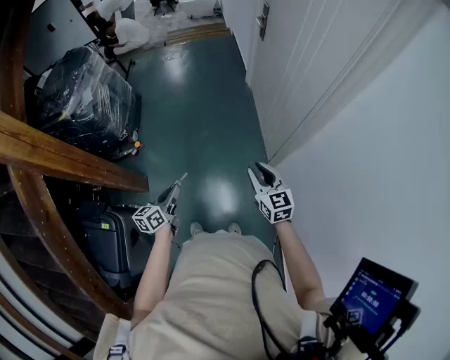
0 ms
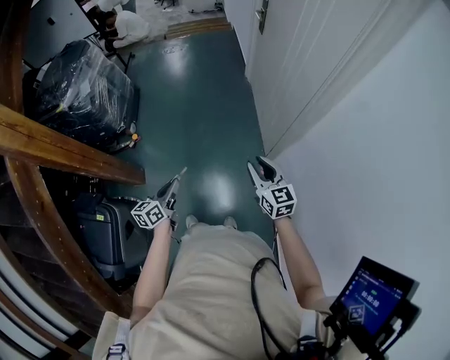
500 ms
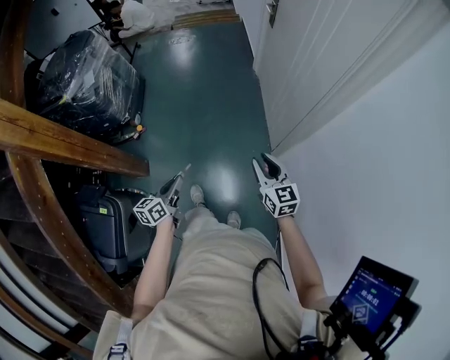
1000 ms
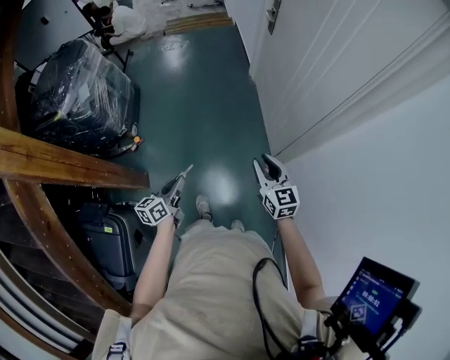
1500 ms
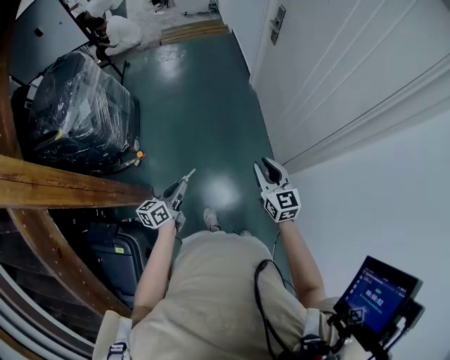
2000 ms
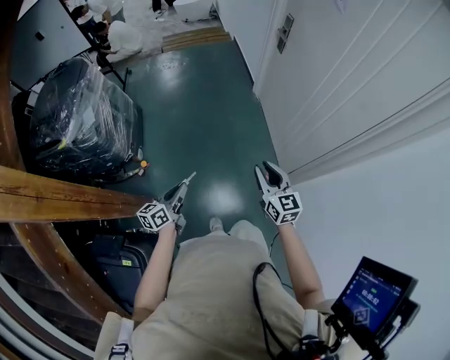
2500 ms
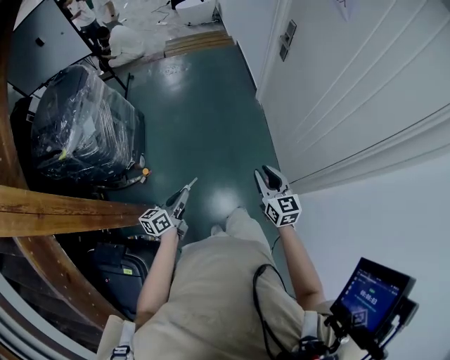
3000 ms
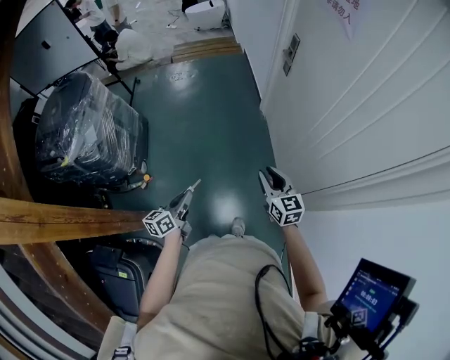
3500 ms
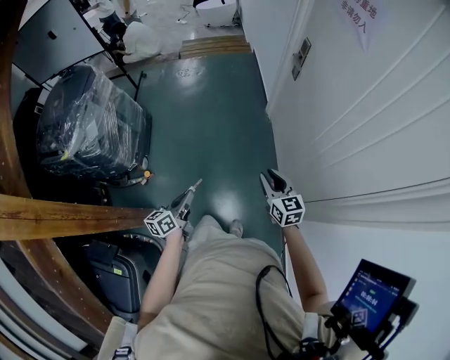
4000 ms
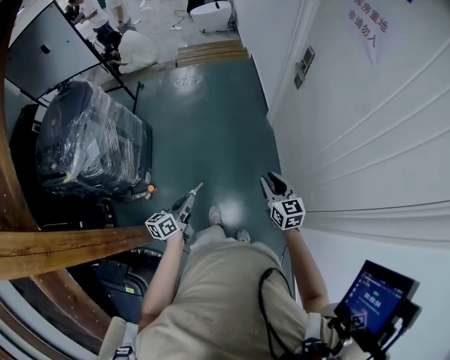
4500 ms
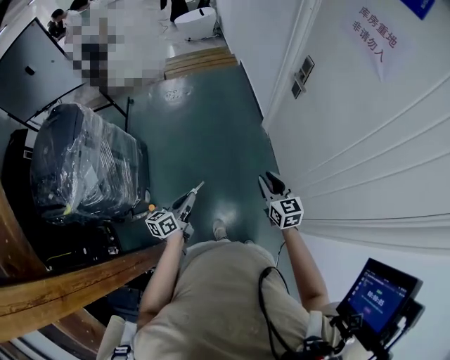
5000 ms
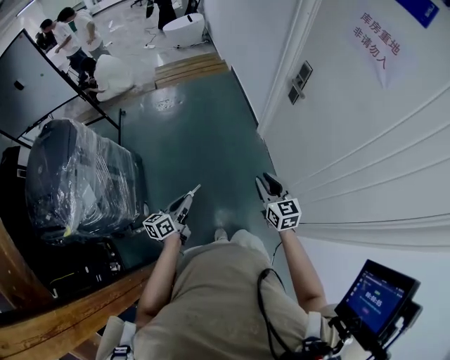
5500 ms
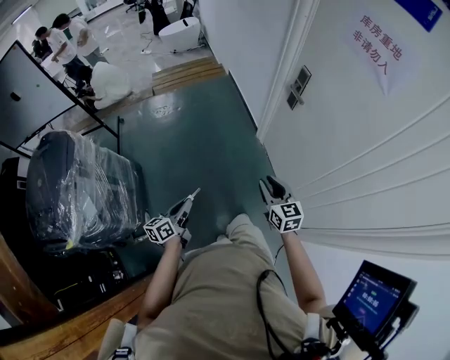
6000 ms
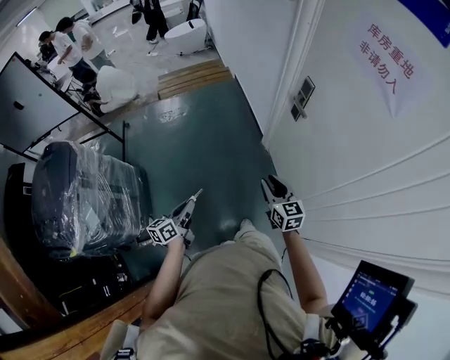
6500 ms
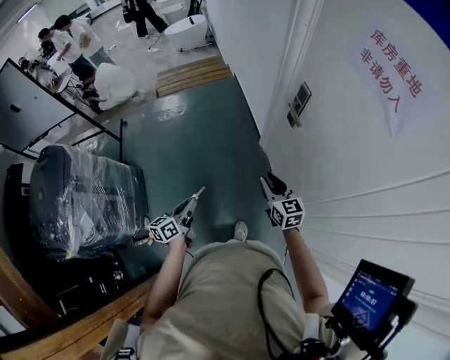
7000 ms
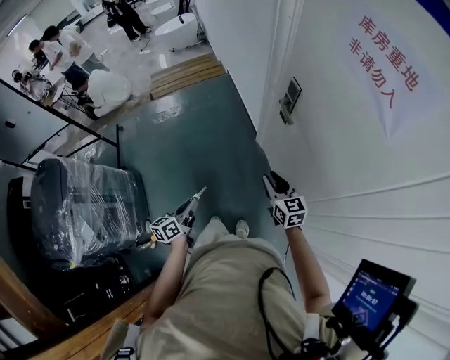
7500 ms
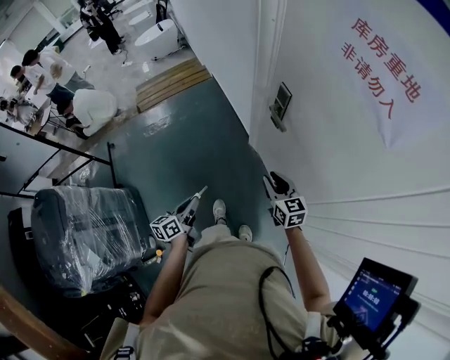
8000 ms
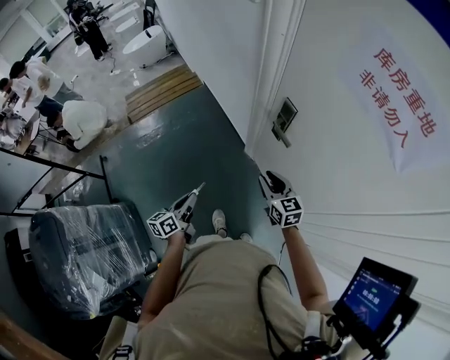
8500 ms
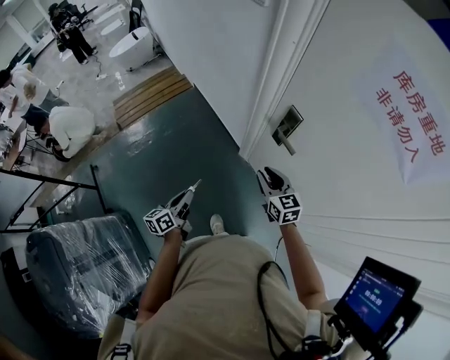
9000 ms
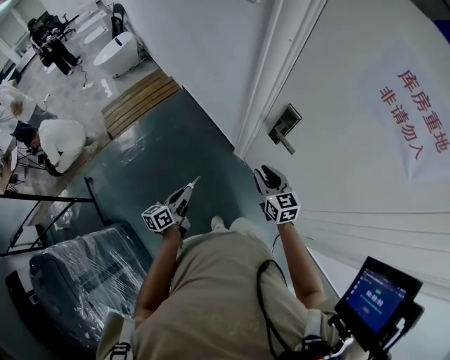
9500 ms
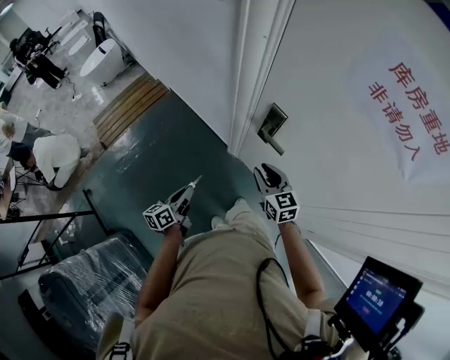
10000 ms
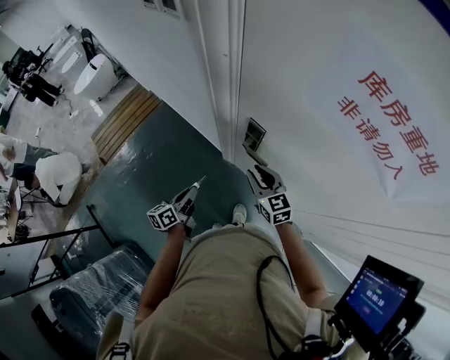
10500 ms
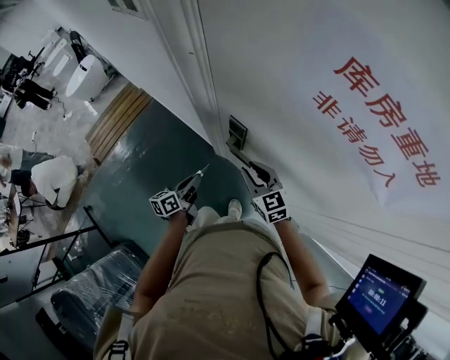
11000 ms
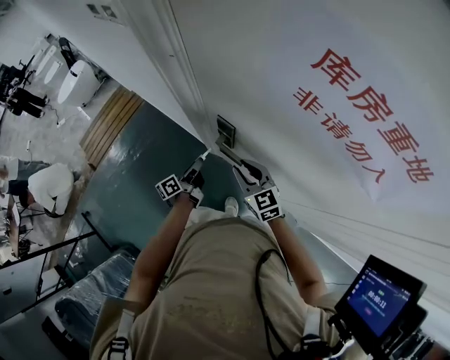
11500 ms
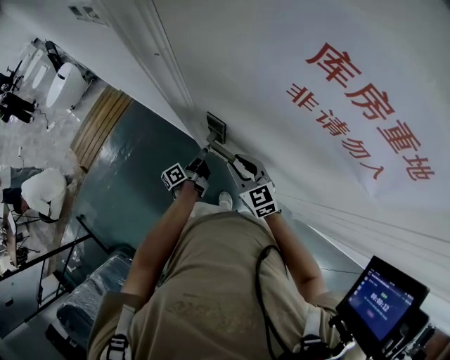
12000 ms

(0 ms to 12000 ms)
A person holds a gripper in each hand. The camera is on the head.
0 ms - 2000 ms: Both grippers move forward and to the left, roughly 15 cm.
2000 ms - 4000 ms: Both grippers move forward, approximately 20 cm.
4000 ms - 6000 ms: Both grippers travel together forward and to the left, approximately 30 cm.
6000 ms - 8000 ms: The two grippers go approximately 25 cm forward and to the right.
8000 ms - 10000 ms: The left gripper goes approximately 25 cm forward. The right gripper heads forward and to the left, covering about 15 cm.
10000 ms - 12000 ms: The left gripper travels to the right and forward by some 35 cm, and changes its angle by some 30 degrees, while the right gripper moves to the right and forward, approximately 10 cm.

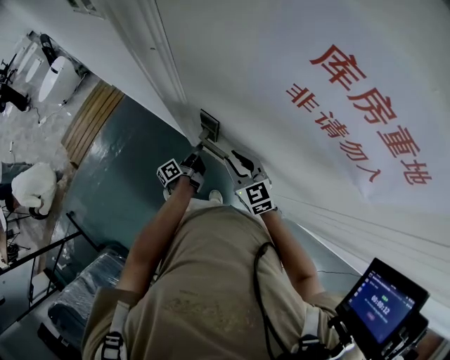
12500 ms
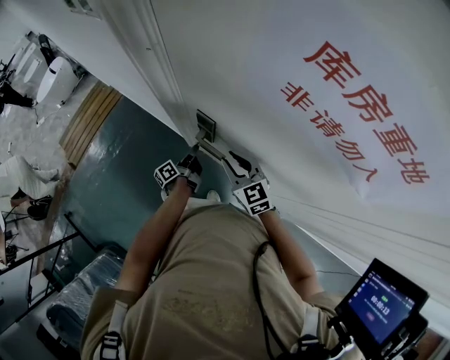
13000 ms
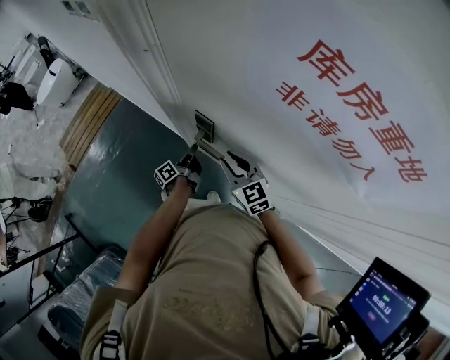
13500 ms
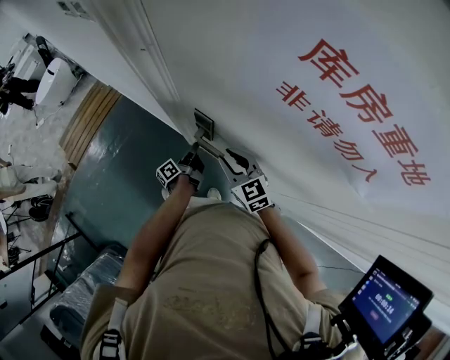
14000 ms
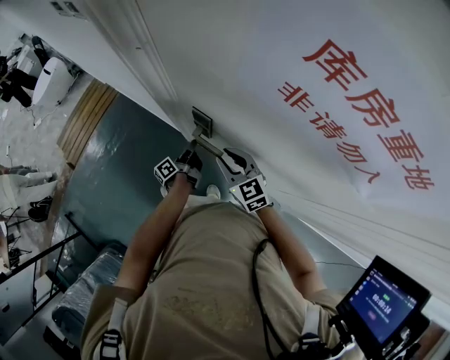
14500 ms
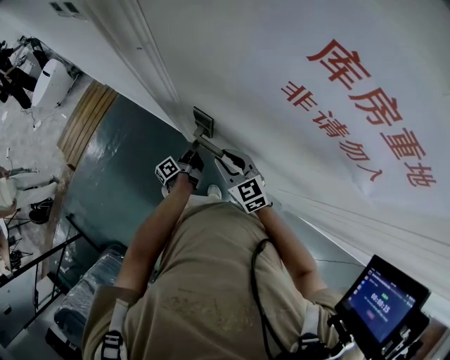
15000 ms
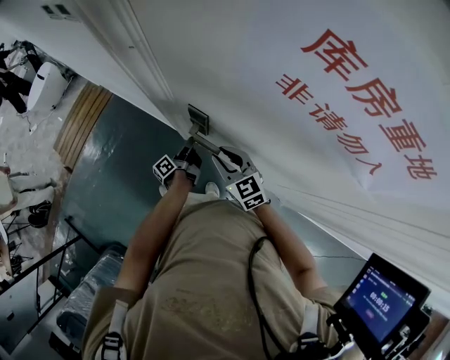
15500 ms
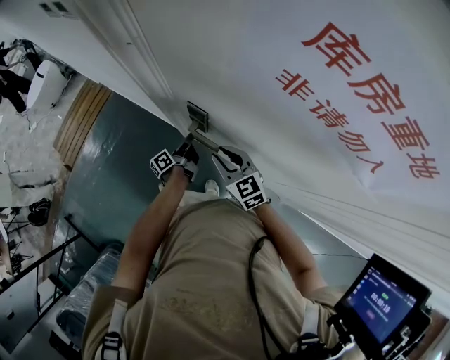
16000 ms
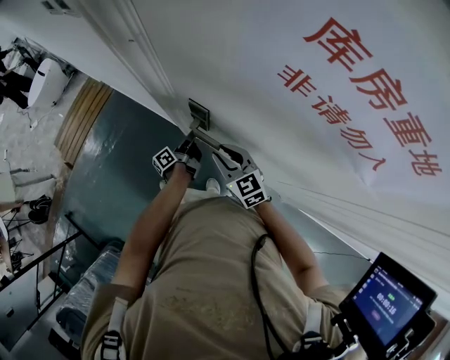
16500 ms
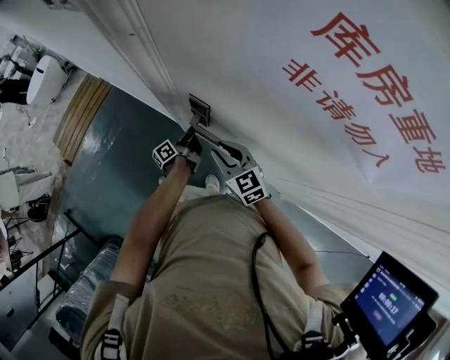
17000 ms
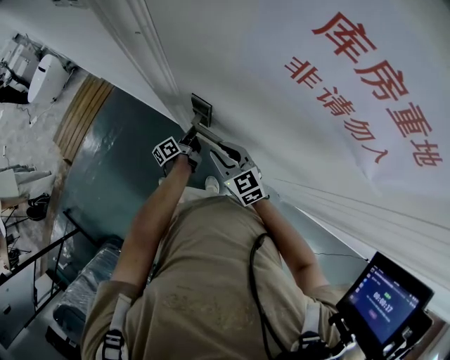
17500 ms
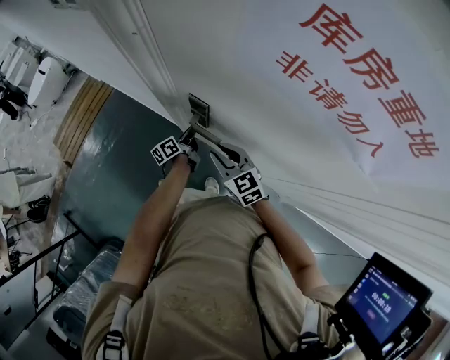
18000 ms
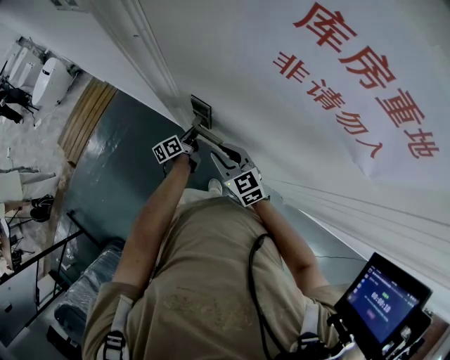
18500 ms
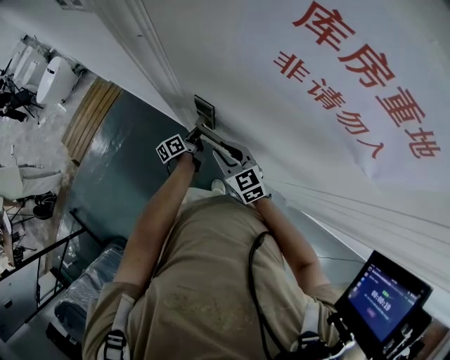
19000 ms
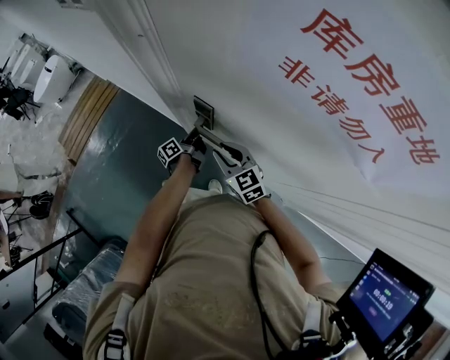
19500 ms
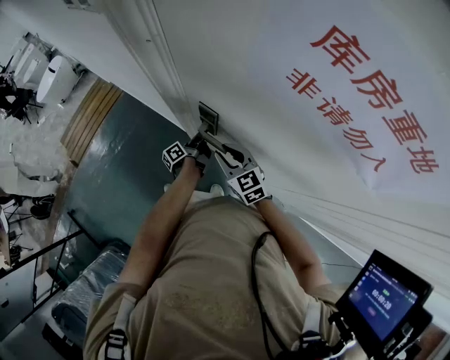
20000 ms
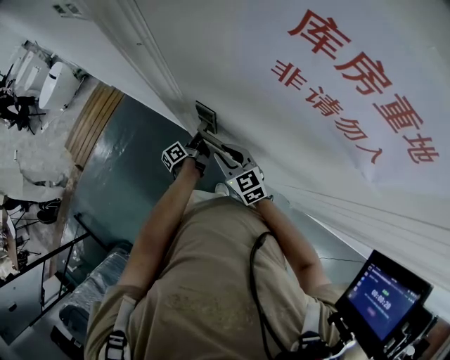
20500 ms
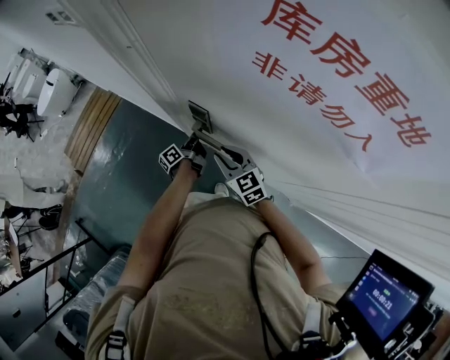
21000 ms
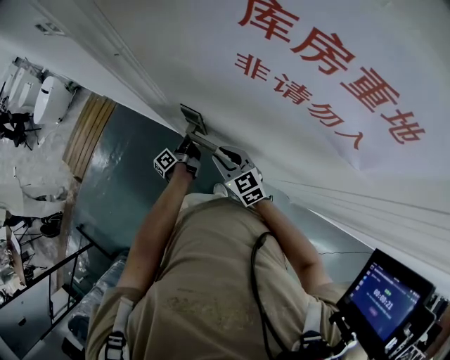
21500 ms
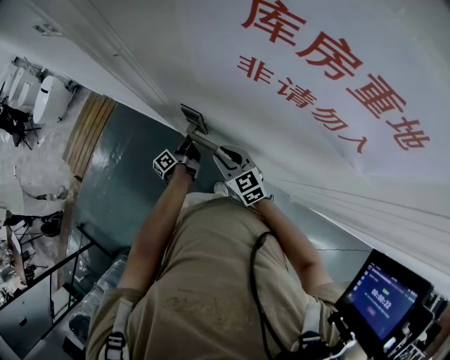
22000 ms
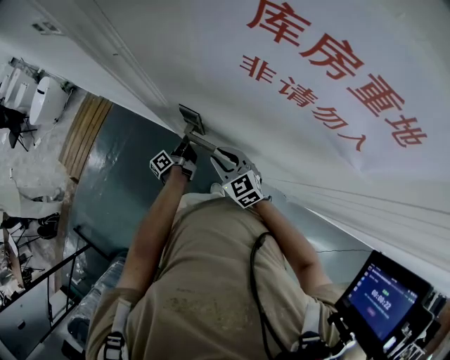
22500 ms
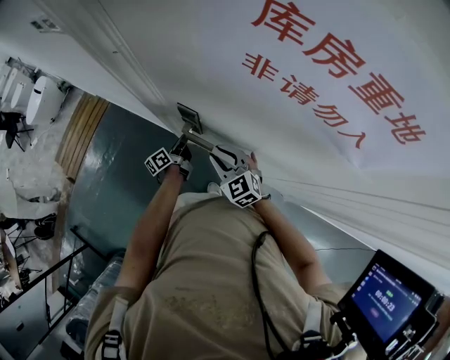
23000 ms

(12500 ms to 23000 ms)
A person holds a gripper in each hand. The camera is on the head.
12500 ms - 16500 ms: The grippers stay close to where they were, moving slightly.
16500 ms - 19000 ms: The left gripper changes its angle by some 20 degrees.
21000 ms - 23000 ms: The left gripper closes.

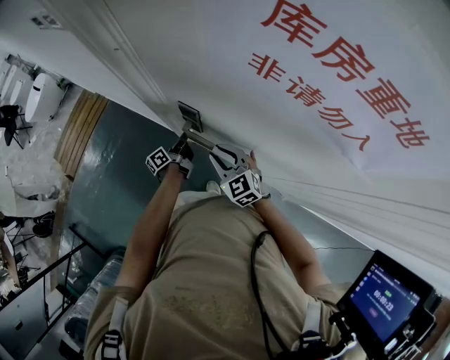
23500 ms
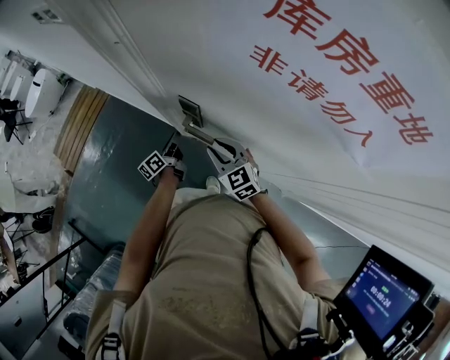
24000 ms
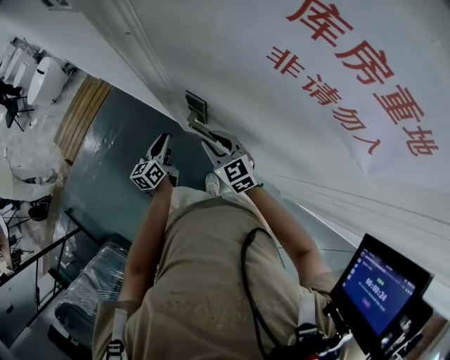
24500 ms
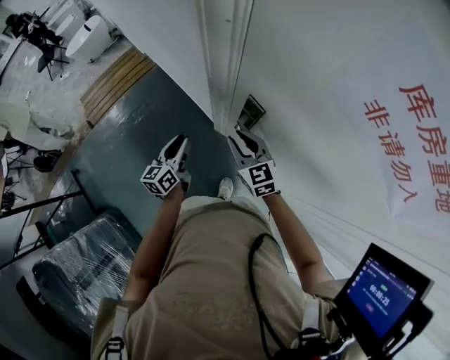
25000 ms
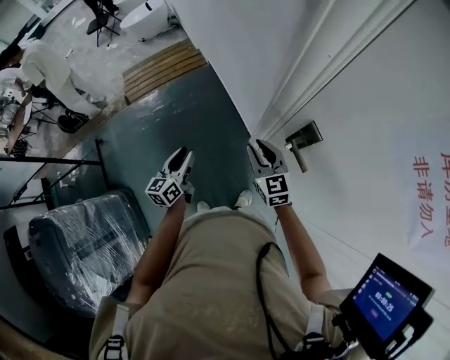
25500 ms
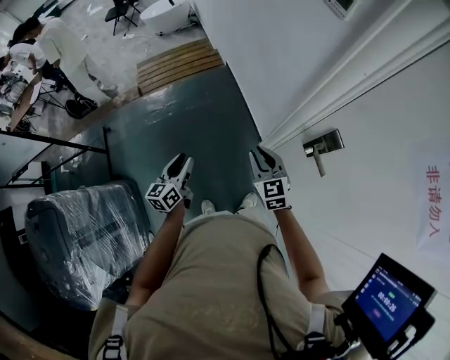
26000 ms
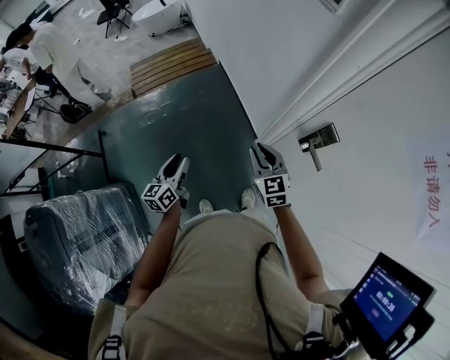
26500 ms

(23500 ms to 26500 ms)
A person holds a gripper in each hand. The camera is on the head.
23500 ms - 25000 ms: The left gripper travels to the left, upward and backward by about 25 cm, and twists roughly 40 degrees clockwise, seen from behind. The right gripper travels to the left by some 10 cm.
25000 ms - 26500 ms: The two grippers go about 20 cm to the left.

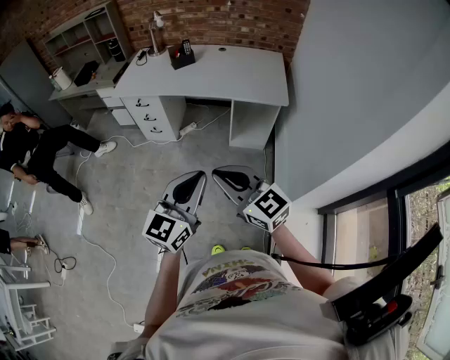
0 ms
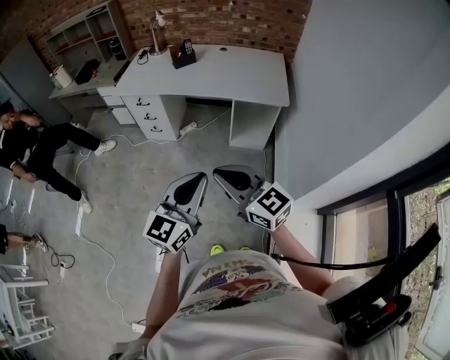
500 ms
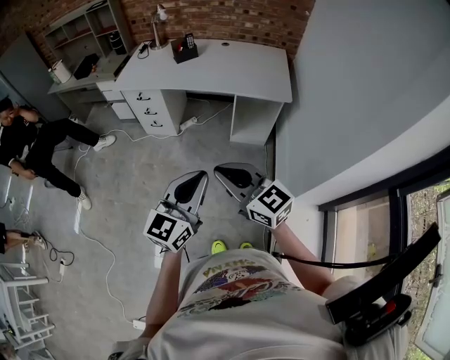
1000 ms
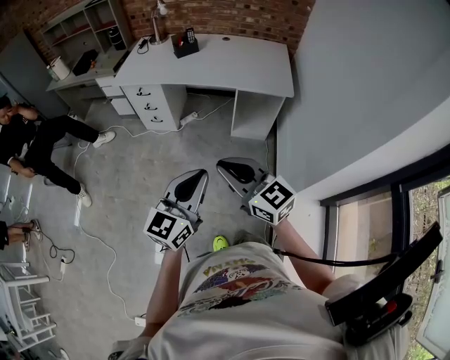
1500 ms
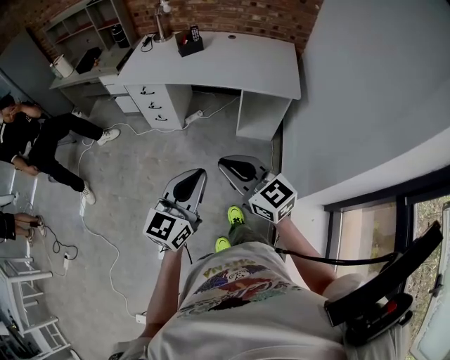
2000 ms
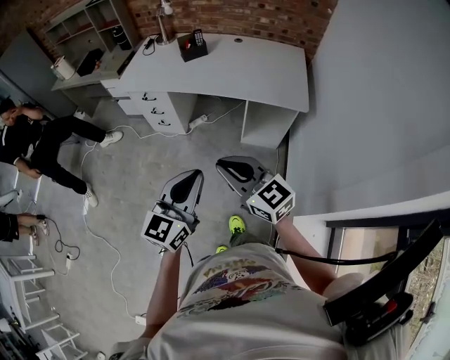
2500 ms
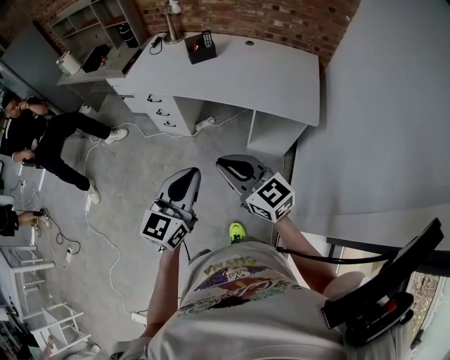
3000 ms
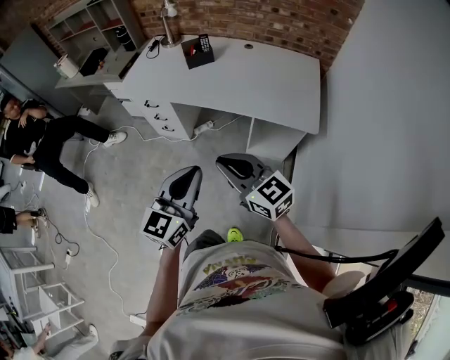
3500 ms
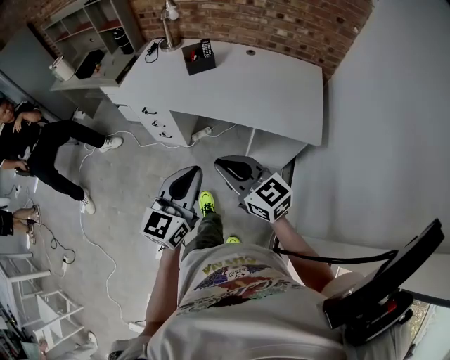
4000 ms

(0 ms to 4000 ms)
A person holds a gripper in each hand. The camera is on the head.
0 ms - 2000 ms: The right gripper shifts by some 5 cm.
2000 ms - 4000 ms: The grippers both shift forward by some 25 cm.
